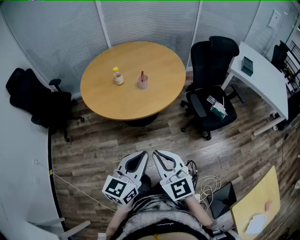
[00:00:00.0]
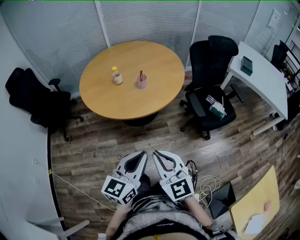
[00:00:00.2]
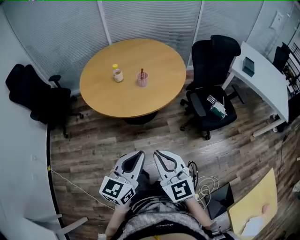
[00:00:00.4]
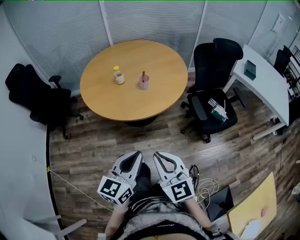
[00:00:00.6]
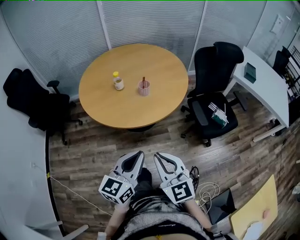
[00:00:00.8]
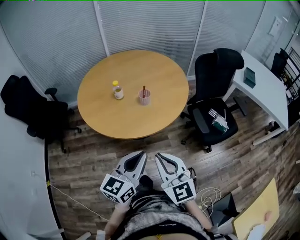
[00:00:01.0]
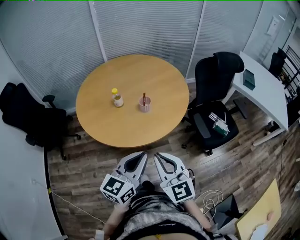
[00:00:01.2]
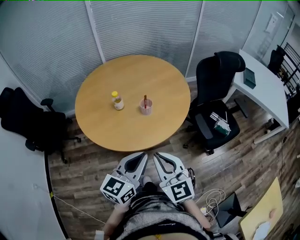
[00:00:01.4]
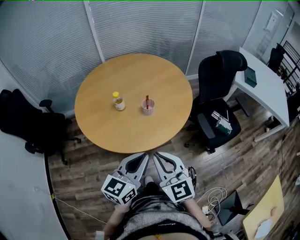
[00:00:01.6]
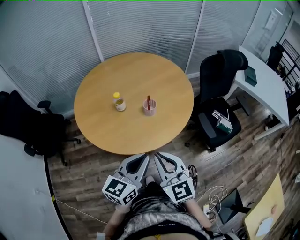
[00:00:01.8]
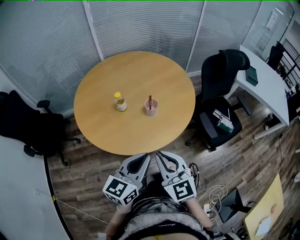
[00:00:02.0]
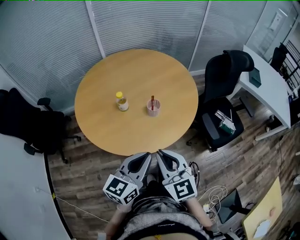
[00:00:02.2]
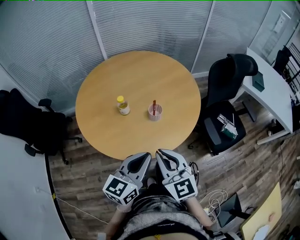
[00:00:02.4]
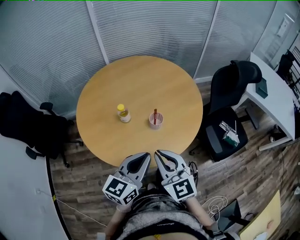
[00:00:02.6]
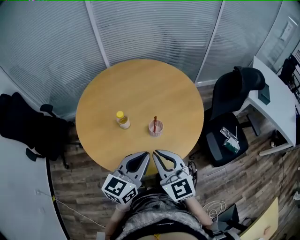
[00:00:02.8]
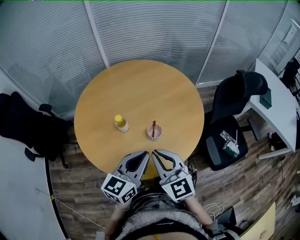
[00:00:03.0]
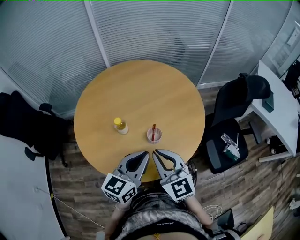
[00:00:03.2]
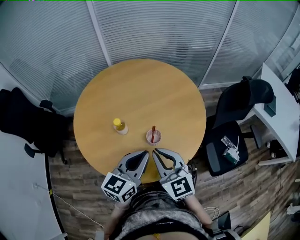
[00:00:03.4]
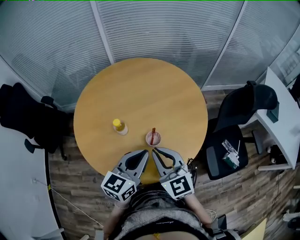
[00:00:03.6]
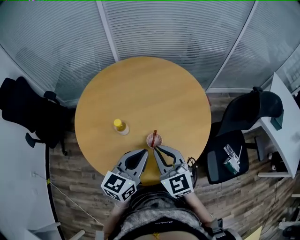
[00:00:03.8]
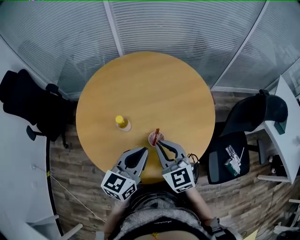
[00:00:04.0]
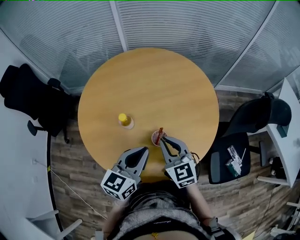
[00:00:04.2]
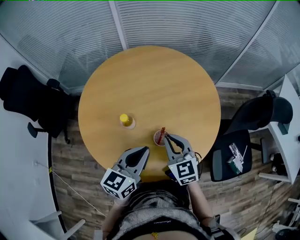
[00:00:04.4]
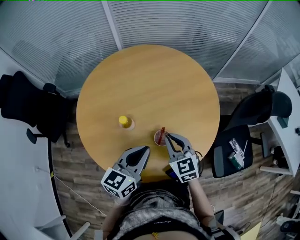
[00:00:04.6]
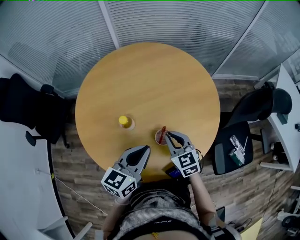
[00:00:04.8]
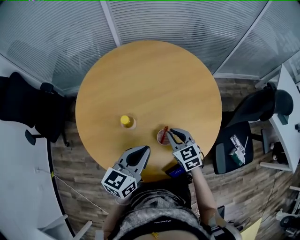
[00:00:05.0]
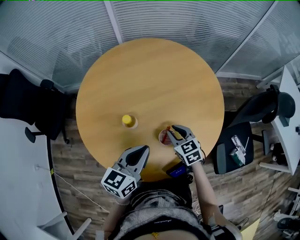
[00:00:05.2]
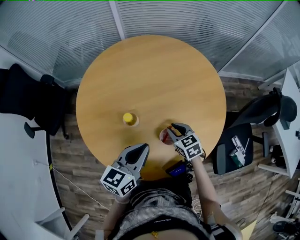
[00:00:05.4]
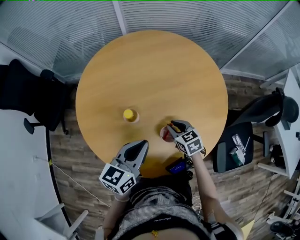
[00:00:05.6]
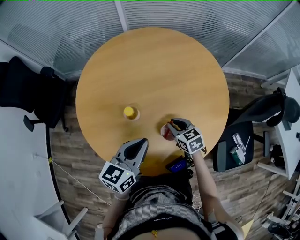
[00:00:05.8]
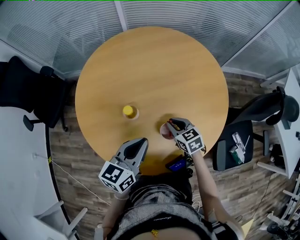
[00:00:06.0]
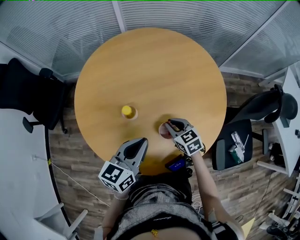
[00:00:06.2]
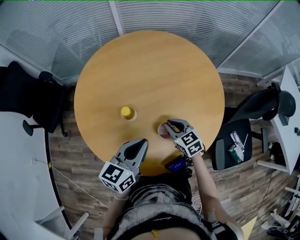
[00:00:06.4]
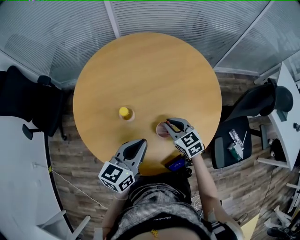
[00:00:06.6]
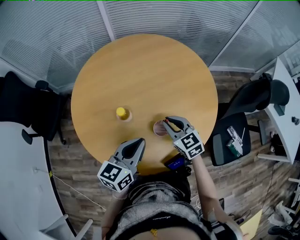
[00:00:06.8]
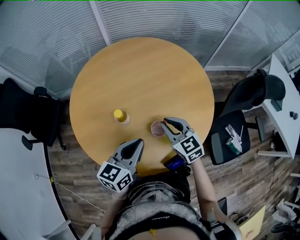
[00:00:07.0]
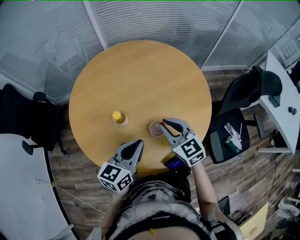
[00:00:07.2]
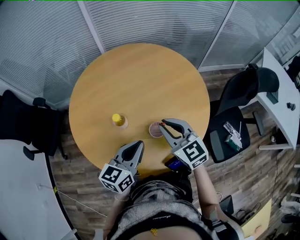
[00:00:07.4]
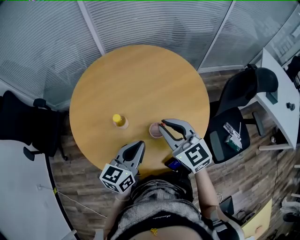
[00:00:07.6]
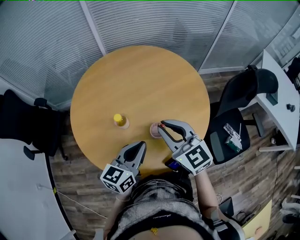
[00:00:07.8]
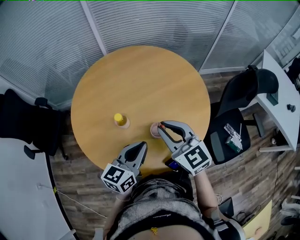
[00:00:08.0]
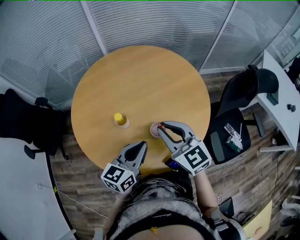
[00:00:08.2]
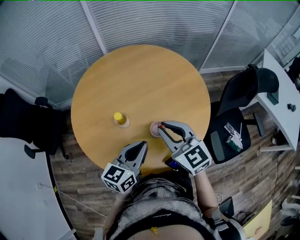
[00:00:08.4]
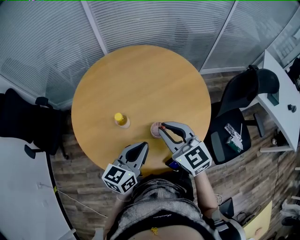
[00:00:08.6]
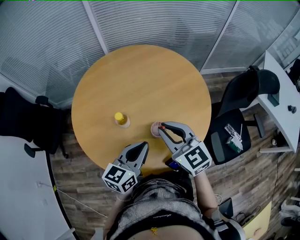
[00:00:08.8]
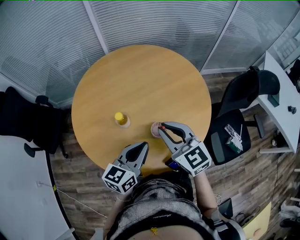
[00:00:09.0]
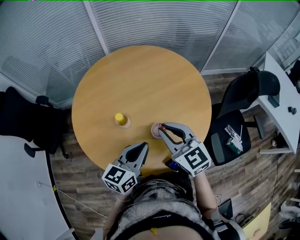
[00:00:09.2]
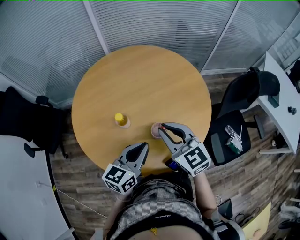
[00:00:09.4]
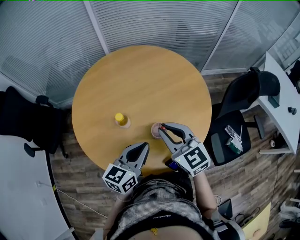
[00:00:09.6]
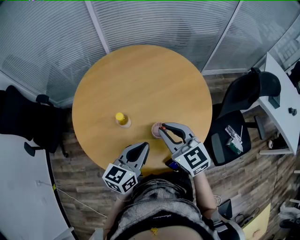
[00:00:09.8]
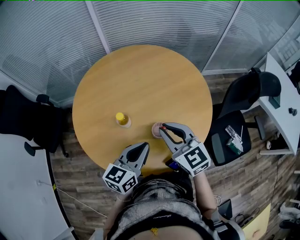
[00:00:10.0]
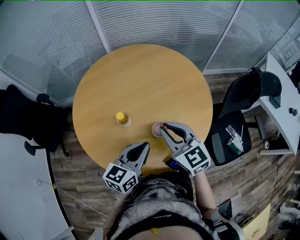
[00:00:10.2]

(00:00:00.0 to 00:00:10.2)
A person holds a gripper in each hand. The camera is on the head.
00:00:00.0 - 00:00:01.4: Both grippers move forward, about 20 cm.
00:00:01.4 - 00:00:03.0: The two grippers go approximately 25 cm forward.
00:00:03.0 - 00:00:04.4: The right gripper heads forward and downward, covering some 20 cm. The left gripper moves forward, some 10 cm.
00:00:04.4 - 00:00:05.8: The left gripper ends up roughly 5 cm from where it was. The right gripper shifts approximately 15 cm downward, and turns by about 30 degrees.
00:00:05.8 - 00:00:07.2: The left gripper shifts by about 5 cm. Meanwhile the right gripper is displaced upward by some 15 cm, and turns by approximately 30 degrees.
00:00:07.2 - 00:00:08.8: The right gripper heads upward, covering approximately 5 cm.
00:00:08.8 - 00:00:10.2: Neither gripper changes place.
